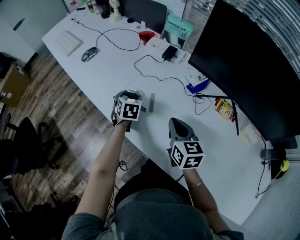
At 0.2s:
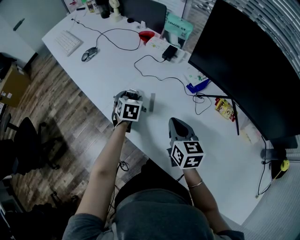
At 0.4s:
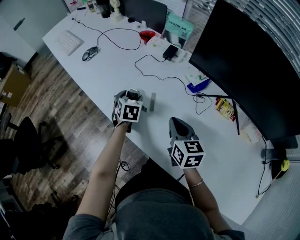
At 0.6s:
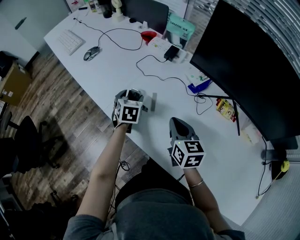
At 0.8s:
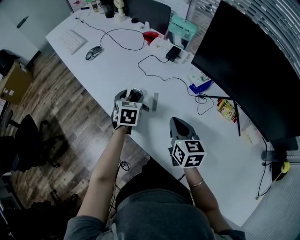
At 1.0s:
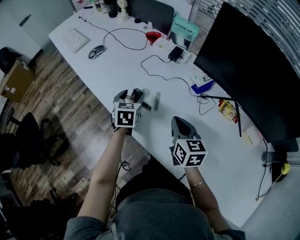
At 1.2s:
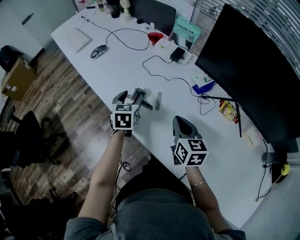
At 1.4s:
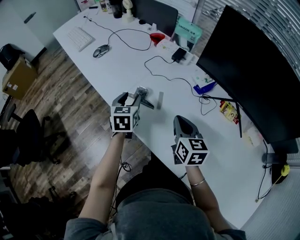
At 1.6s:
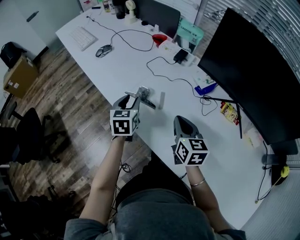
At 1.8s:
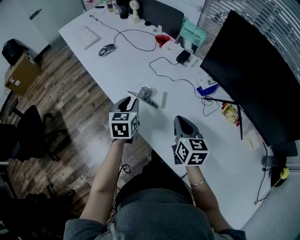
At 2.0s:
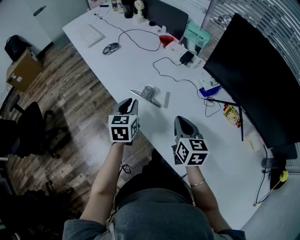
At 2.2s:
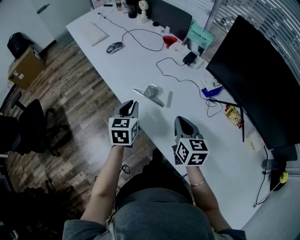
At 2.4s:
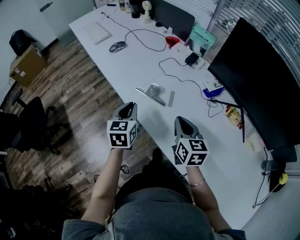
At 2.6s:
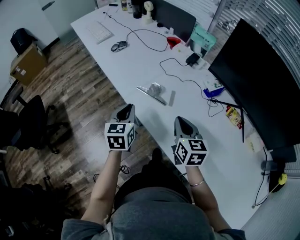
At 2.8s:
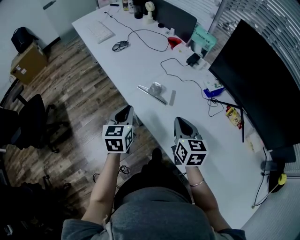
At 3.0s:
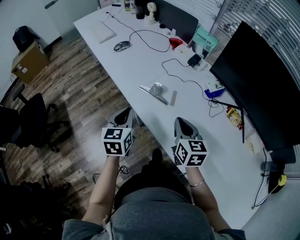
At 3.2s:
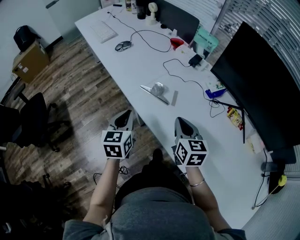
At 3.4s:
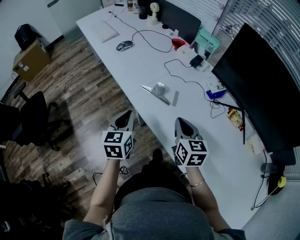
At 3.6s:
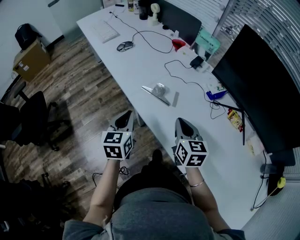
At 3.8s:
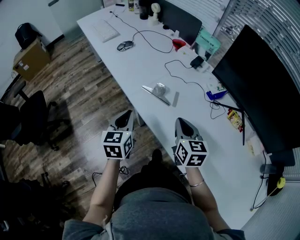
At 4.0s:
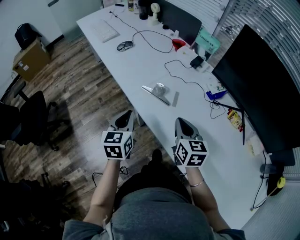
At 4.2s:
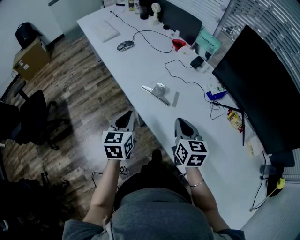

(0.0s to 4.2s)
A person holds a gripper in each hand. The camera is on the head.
0.0s - 1.4s: The left gripper is displaced upward and backward by some 10 cm.
1.4s - 2.8s: The right gripper goes some 5 cm to the left, while the left gripper heads backward and to the left, covering about 15 cm, and closes its fingers.
2.8s - 4.2s: The grippers move only a little.

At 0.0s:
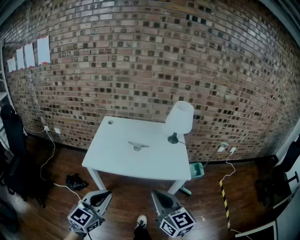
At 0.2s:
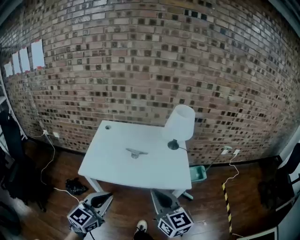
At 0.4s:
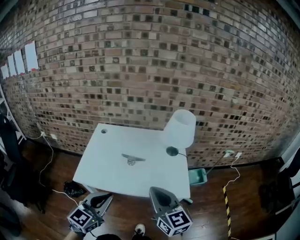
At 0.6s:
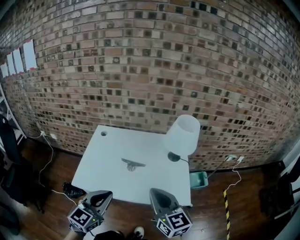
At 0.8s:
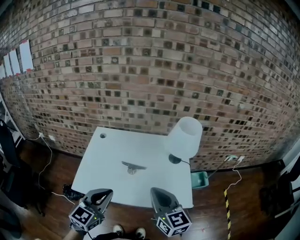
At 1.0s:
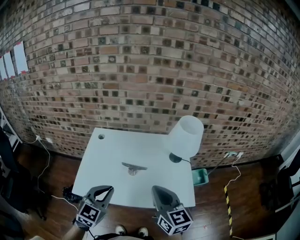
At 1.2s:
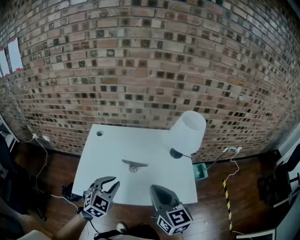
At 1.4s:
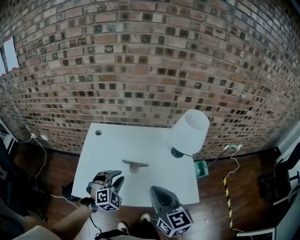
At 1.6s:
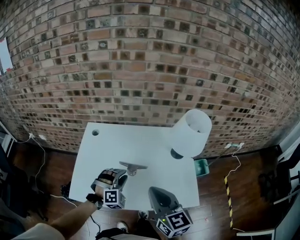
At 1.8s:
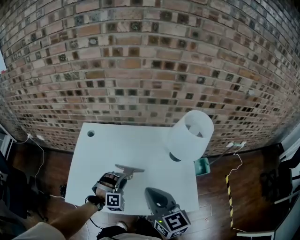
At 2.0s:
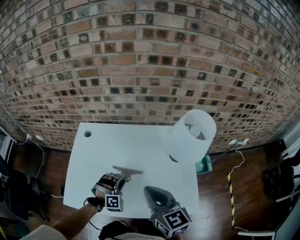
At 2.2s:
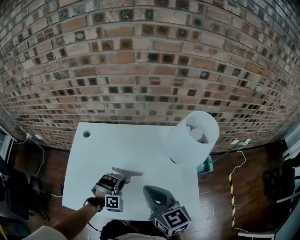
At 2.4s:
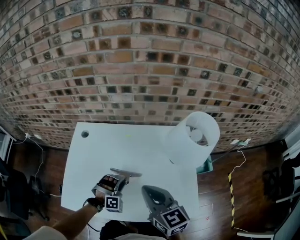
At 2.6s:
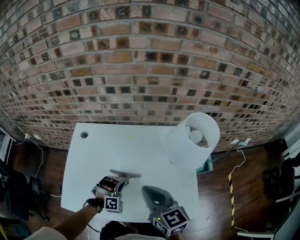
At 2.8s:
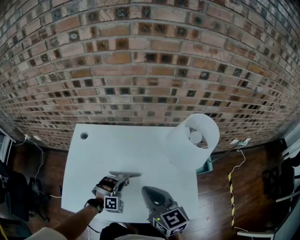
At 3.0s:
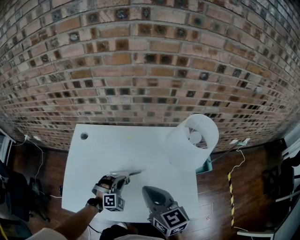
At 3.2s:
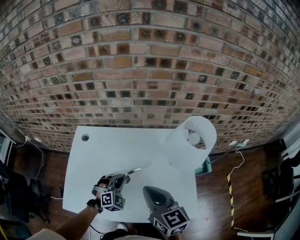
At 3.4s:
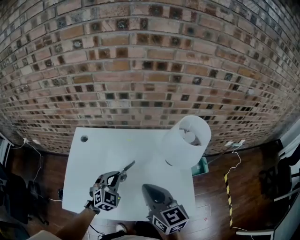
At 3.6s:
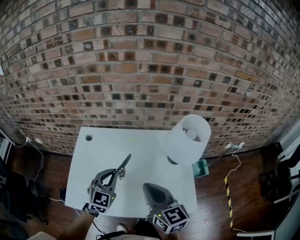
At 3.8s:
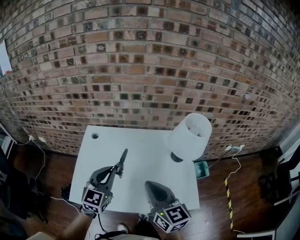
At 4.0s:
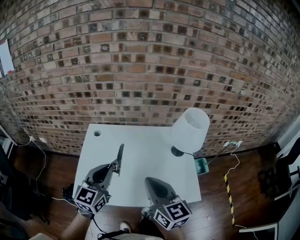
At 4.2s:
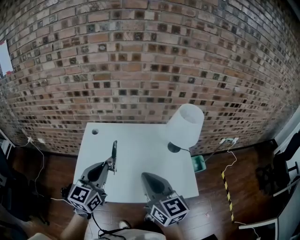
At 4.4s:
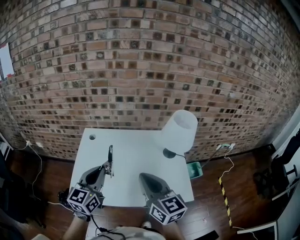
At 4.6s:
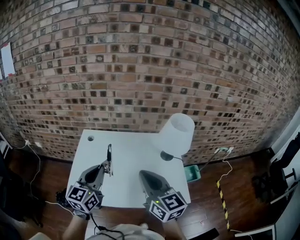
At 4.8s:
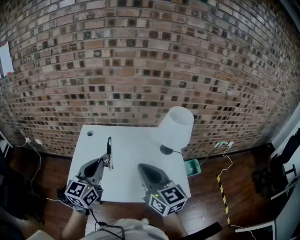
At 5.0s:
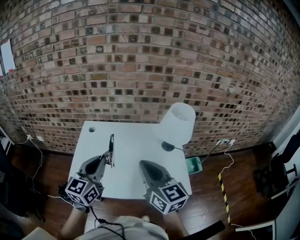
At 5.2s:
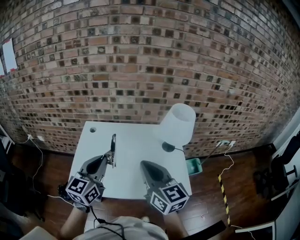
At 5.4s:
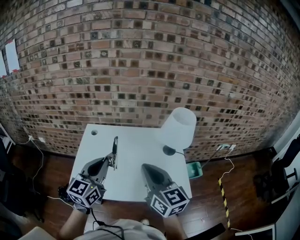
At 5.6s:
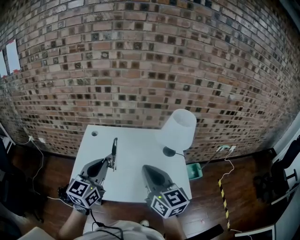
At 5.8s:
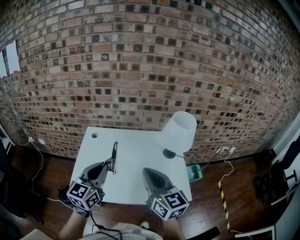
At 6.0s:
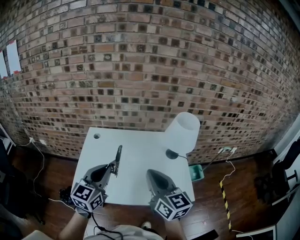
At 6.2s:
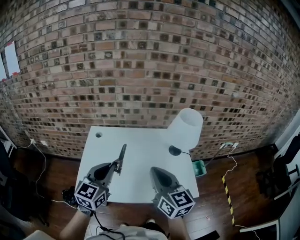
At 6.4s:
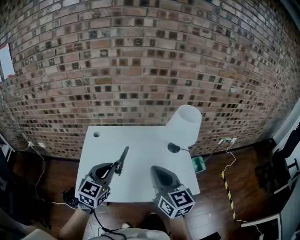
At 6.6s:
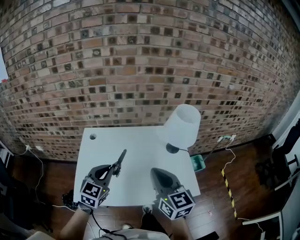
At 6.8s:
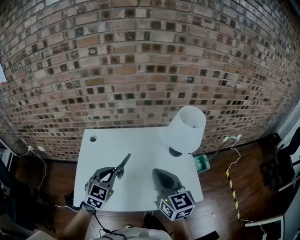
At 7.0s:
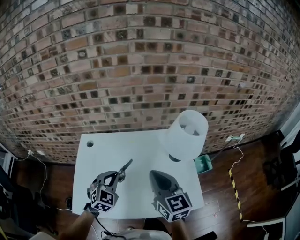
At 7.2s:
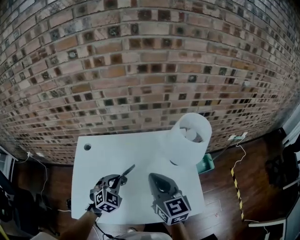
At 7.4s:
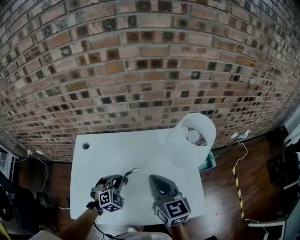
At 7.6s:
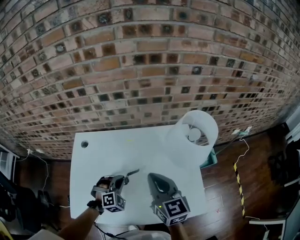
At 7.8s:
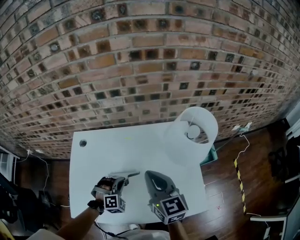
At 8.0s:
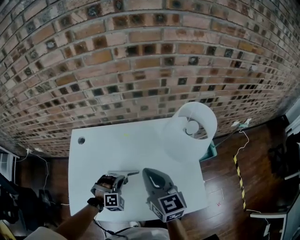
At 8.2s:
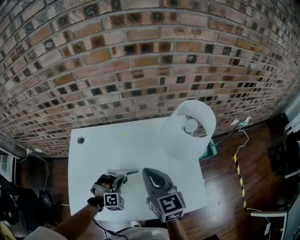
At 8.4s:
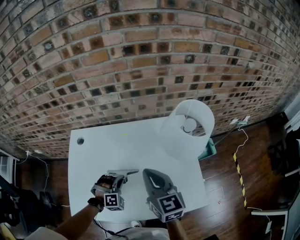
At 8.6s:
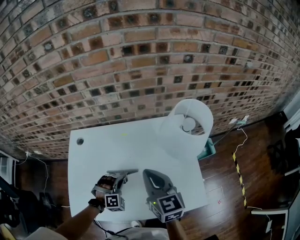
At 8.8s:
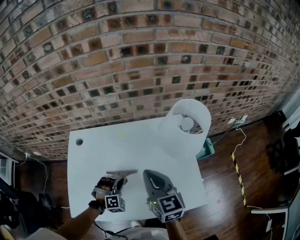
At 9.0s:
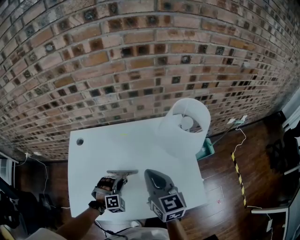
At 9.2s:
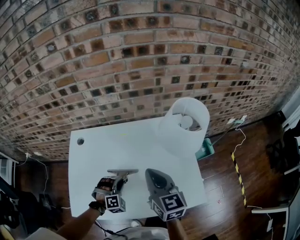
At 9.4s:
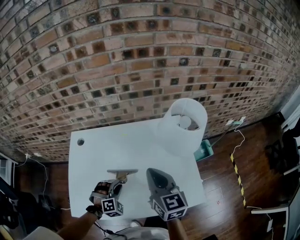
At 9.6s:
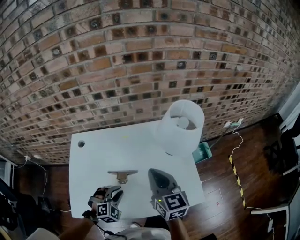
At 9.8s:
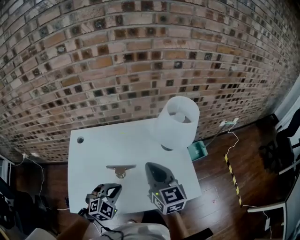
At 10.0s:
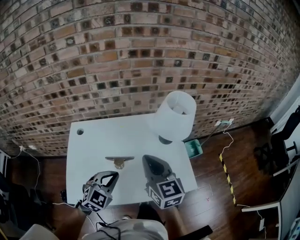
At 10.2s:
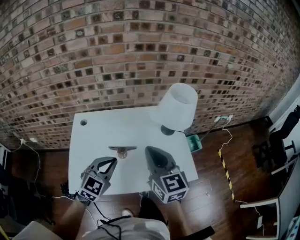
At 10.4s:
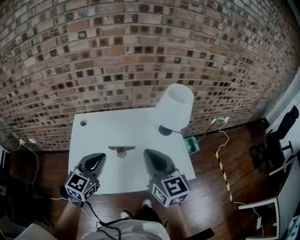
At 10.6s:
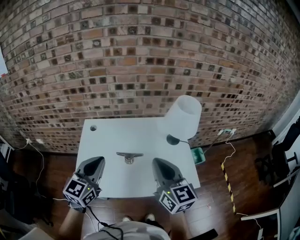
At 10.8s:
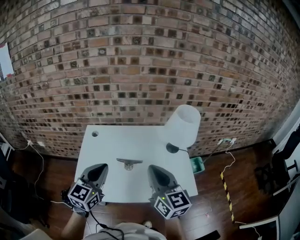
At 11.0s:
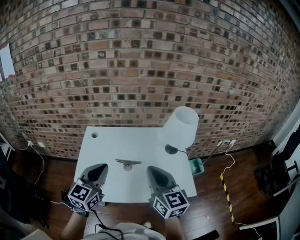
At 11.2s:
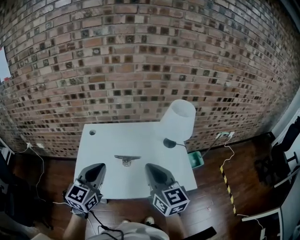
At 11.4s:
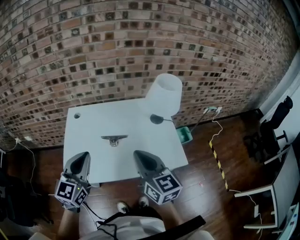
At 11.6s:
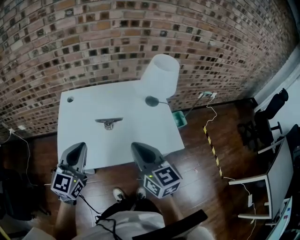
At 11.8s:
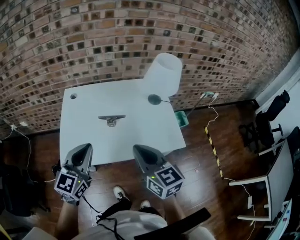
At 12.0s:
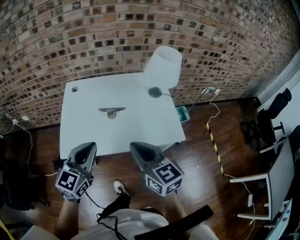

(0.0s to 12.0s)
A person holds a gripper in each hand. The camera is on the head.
0.0s - 1.6s: The left gripper moves forward and downward, roughly 50 cm, rotates around the line of its fingers by some 60 degrees, clockwise from behind, and opens up. Meanwhile the right gripper moves forward, some 30 cm.
1.6s - 3.0s: The right gripper shifts roughly 10 cm forward and downward, while the left gripper moves downward, forward and to the right, some 10 cm, and closes.
3.0s - 4.4s: The right gripper is displaced backward and upward by roughly 15 cm, while the left gripper goes some 30 cm upward, to the left and backward, and rotates around the line of its fingers by roughly 70 degrees, counterclockwise from behind.
4.4s - 6.0s: The grippers make only small movements.
6.0s - 7.6s: The left gripper is displaced downward and forward by approximately 30 cm, and rotates around the line of its fingers by roughly 60 degrees, clockwise from behind. The right gripper goes about 20 cm forward and downward.
7.6s - 9.0s: The left gripper moves some 5 cm, and opens its fingers.
9.0s - 10.4s: The left gripper travels upward by approximately 25 cm, angles its fingers upward, by roughly 40 degrees, and closes its fingers; the right gripper is displaced backward and upward by roughly 15 cm.
10.4s - 12.0s: The two grippers go approximately 15 cm backward.

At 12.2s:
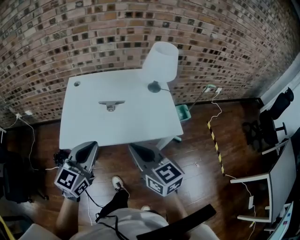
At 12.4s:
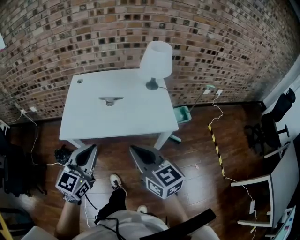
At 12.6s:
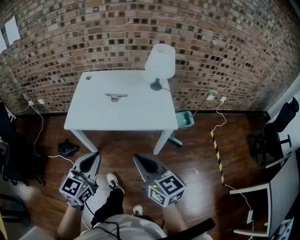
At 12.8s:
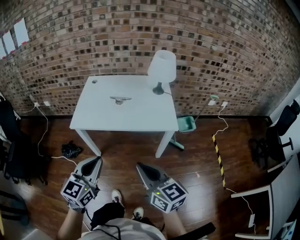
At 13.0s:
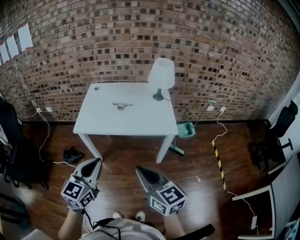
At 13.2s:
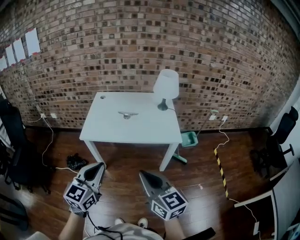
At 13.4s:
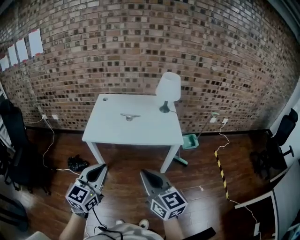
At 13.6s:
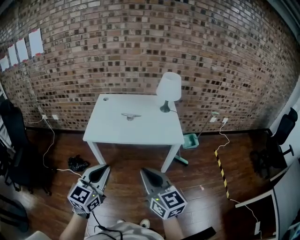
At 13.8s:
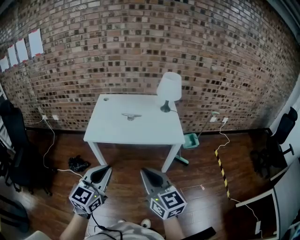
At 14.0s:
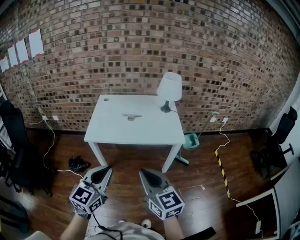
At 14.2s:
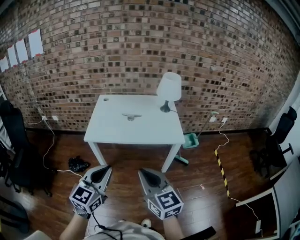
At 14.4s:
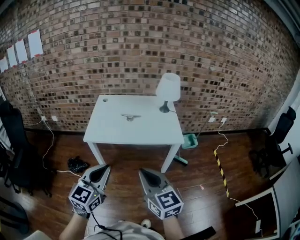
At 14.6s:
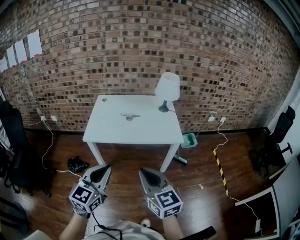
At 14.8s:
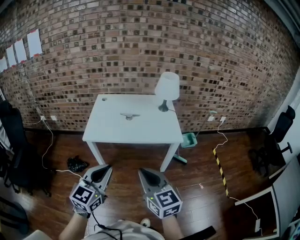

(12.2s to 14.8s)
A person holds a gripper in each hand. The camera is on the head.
12.2s - 13.4s: Both grippers travel together backward, about 25 cm.
13.4s - 14.8s: The grippers make only small movements.

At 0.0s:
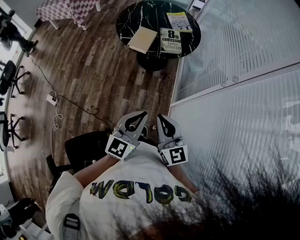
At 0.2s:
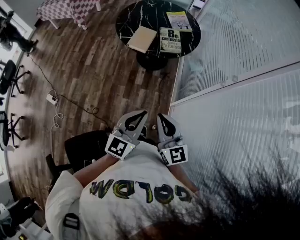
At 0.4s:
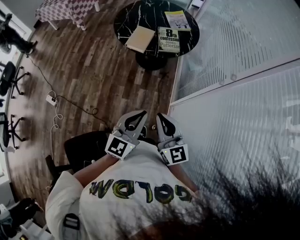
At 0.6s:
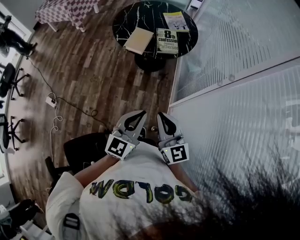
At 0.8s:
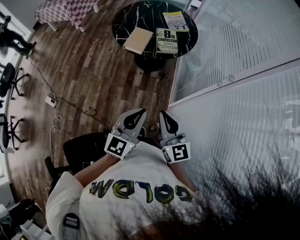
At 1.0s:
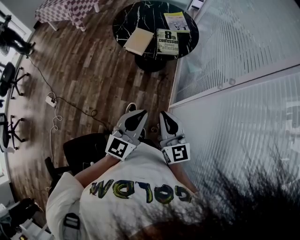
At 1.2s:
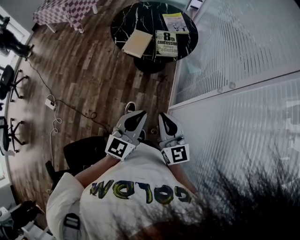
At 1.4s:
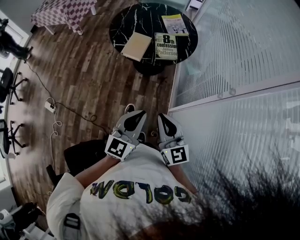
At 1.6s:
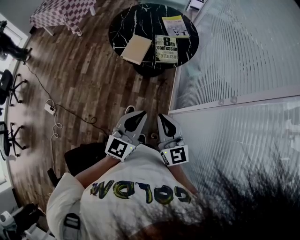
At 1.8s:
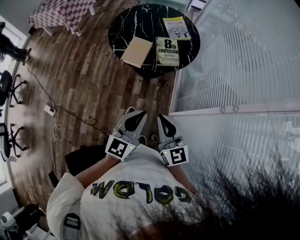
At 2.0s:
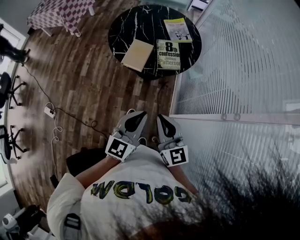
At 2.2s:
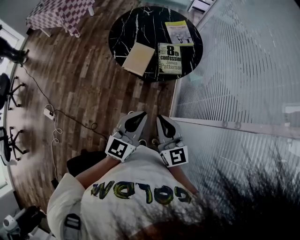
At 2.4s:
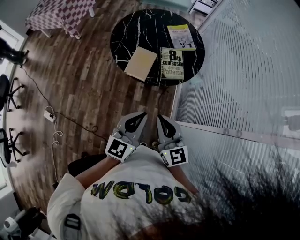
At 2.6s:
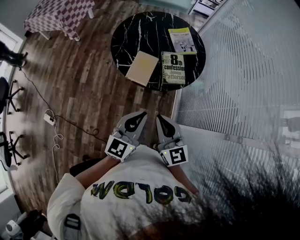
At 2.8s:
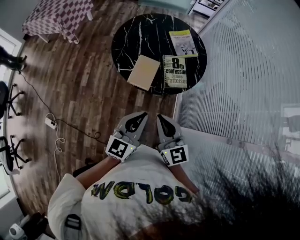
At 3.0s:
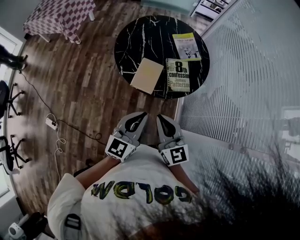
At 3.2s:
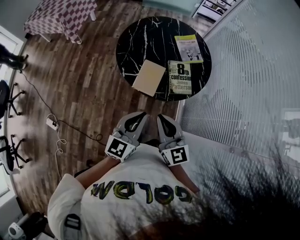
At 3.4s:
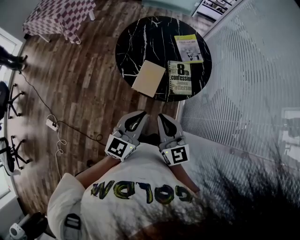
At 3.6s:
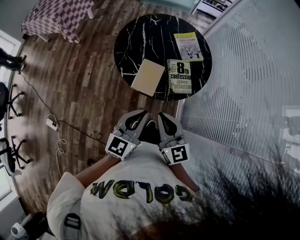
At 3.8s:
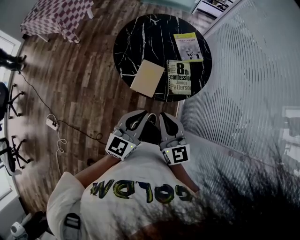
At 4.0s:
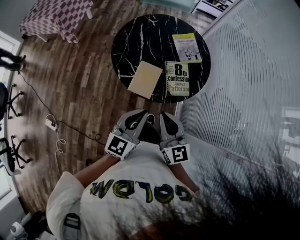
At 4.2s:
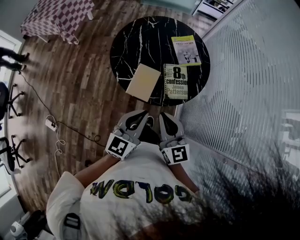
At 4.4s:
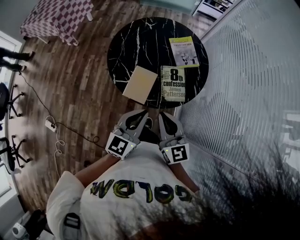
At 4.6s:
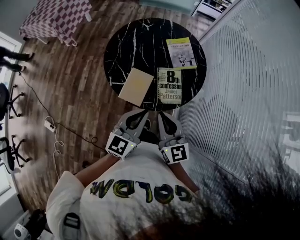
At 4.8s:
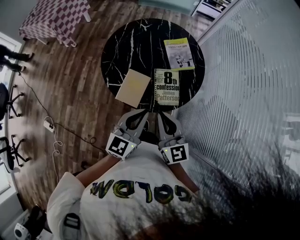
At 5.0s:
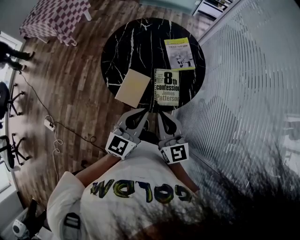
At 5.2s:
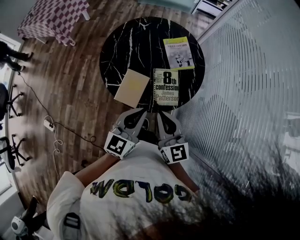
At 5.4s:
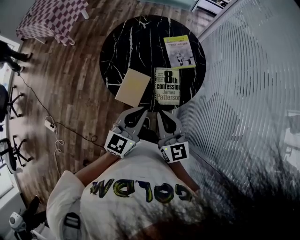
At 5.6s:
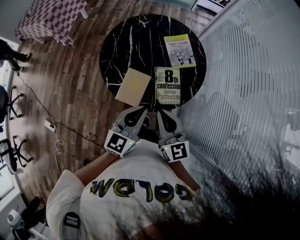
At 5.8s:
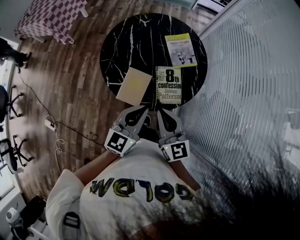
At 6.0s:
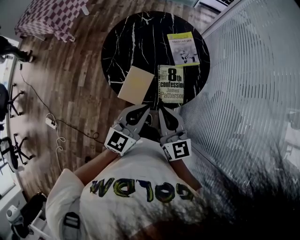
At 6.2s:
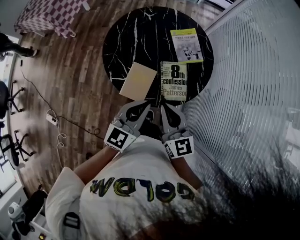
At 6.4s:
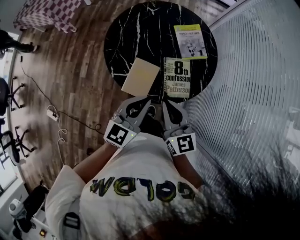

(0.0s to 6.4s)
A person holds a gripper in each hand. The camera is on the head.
0.0s - 1.6s: The two grippers go roughly 10 cm forward.
1.6s - 3.2s: Both grippers move forward and to the left, some 25 cm.
3.2s - 4.8s: Both grippers travel together forward and to the right, some 15 cm.
4.8s - 6.4s: The right gripper moves some 5 cm, while the left gripper changes place by some 5 cm.
